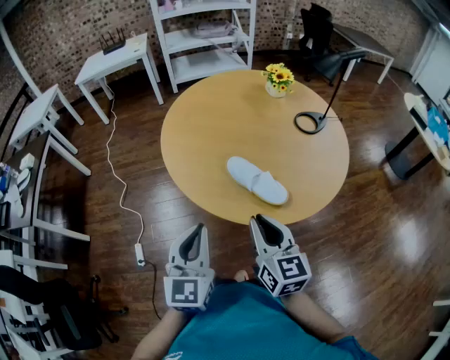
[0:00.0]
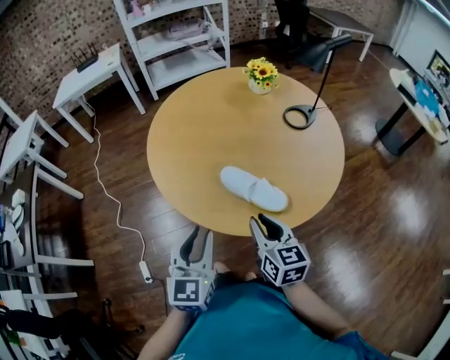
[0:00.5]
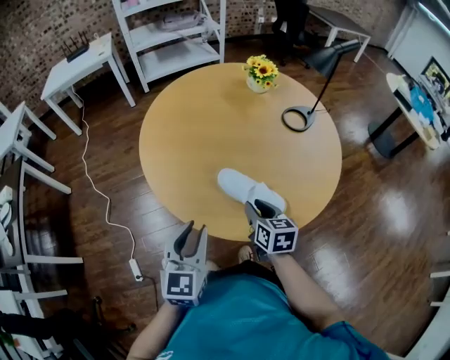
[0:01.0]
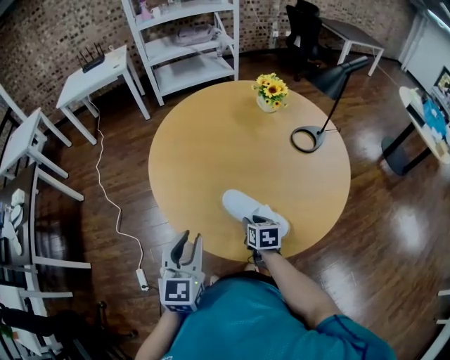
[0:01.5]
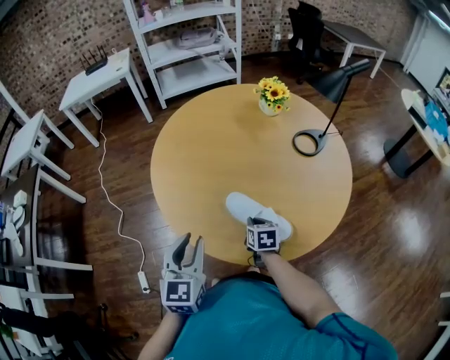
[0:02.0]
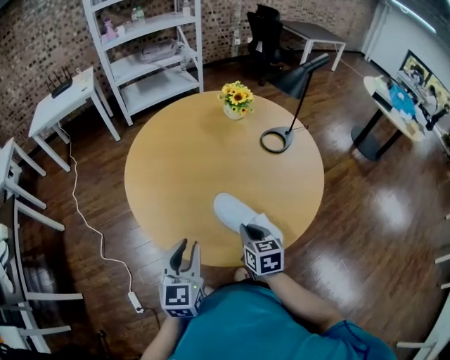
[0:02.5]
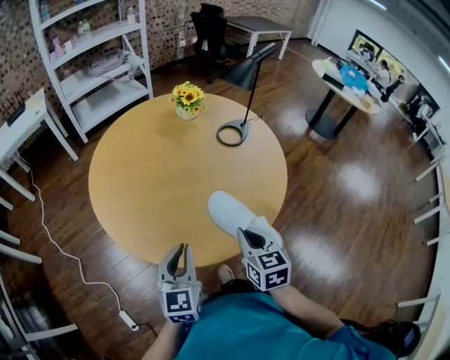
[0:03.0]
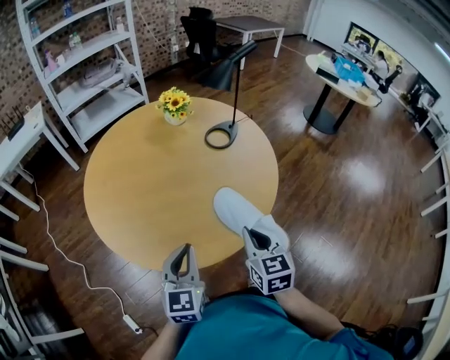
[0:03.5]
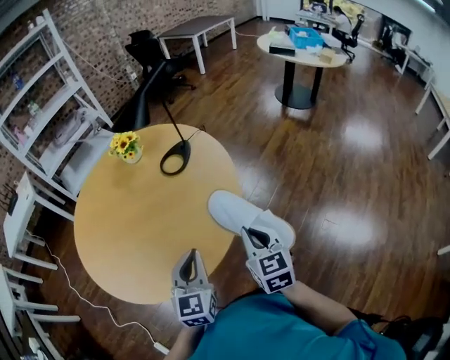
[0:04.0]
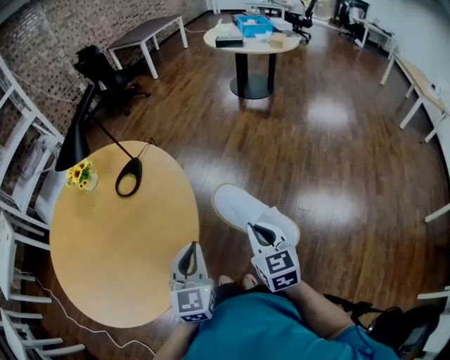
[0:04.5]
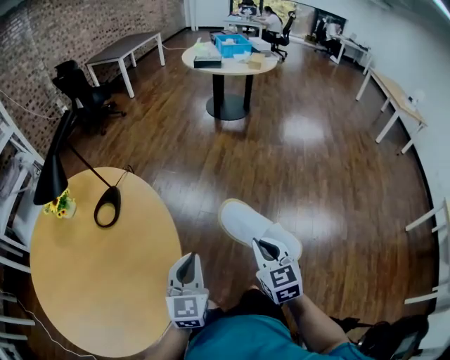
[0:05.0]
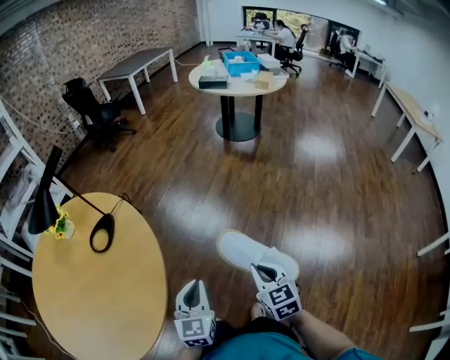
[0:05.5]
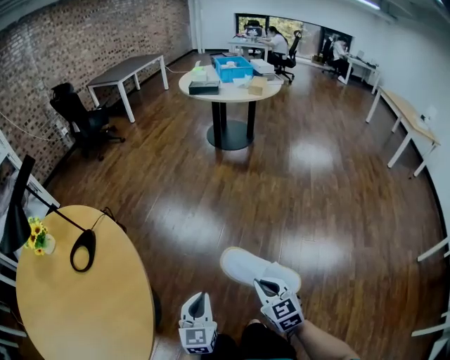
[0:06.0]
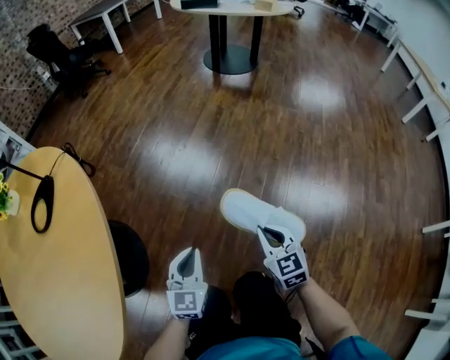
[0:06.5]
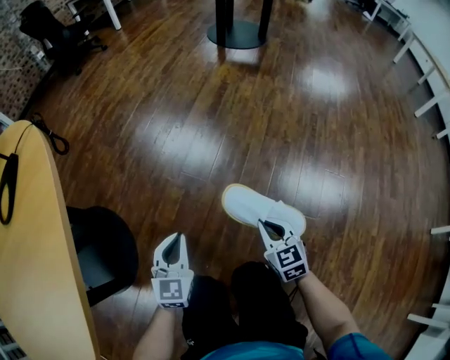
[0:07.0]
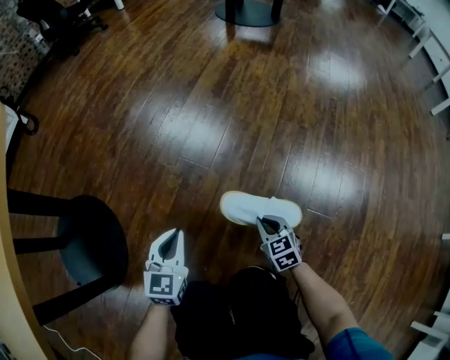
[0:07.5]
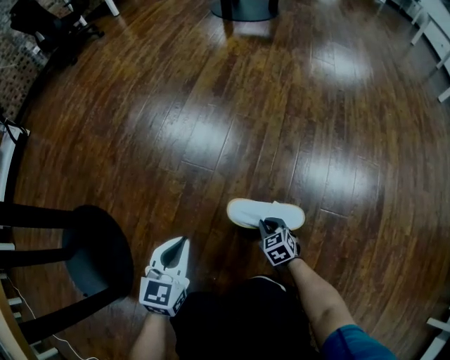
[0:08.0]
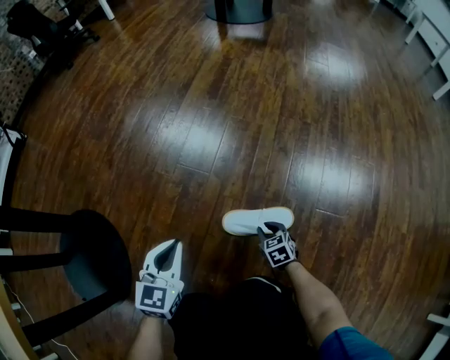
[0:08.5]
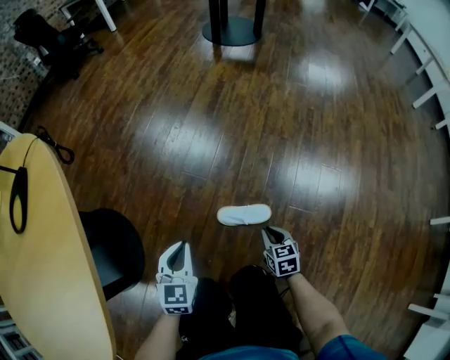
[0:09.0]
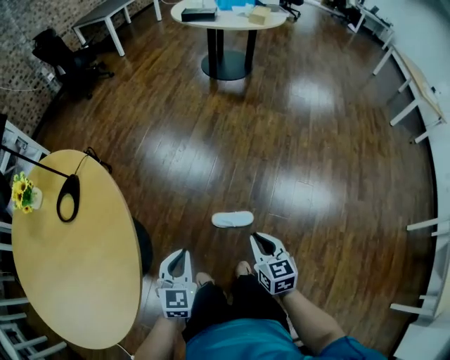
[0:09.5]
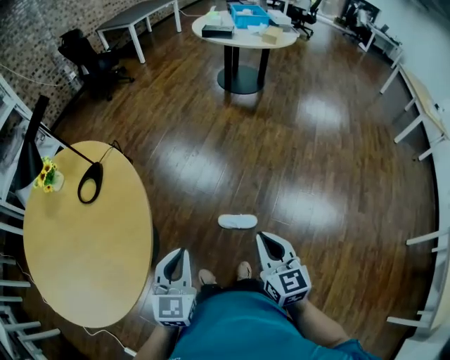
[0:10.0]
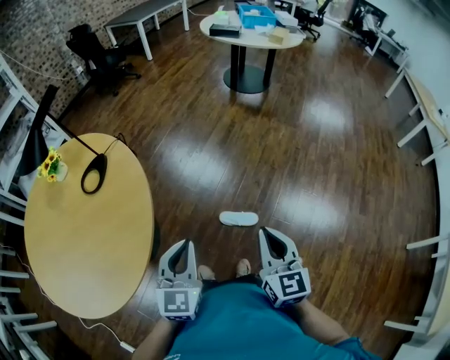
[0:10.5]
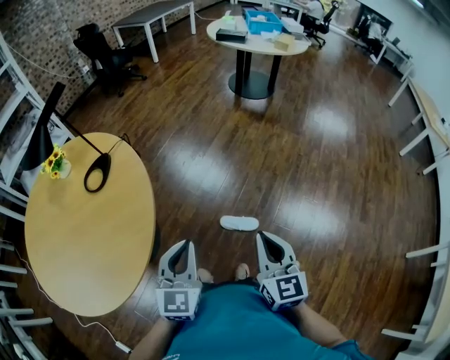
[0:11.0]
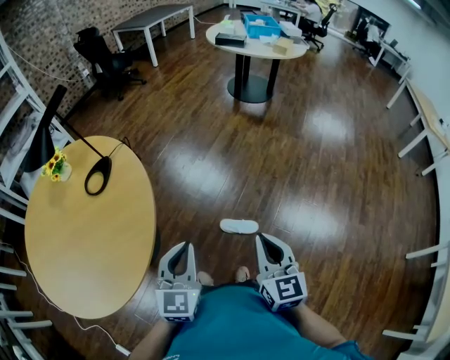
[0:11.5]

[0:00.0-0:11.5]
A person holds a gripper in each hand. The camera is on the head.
0:00.0 to 0:02.0: The left gripper shifts about 20 cm forward, and opens its fingers; the right gripper goes roughly 35 cm downward and forward, angles its fingers downward, by about 30 degrees, and opens and closes again.
0:02.0 to 0:04.0: The left gripper shifts by approximately 35 cm, rotates some 30 degrees, and closes. The right gripper moves approximately 40 cm, and changes its angle by some 40 degrees.
0:04.0 to 0:06.0: Both grippers are carried some 50 cm. The left gripper turns by about 20 degrees.
0:06.0 to 0:07.5: Both grippers move downward, roughly 70 cm.
0:07.5 to 0:09.5: Both grippers travel together upward, roughly 60 cm. The right gripper changes its angle by some 20 degrees.
0:09.5 to 0:11.5: Both grippers move upward and backward, approximately 25 cm. The right gripper changes its angle by roughly 20 degrees.

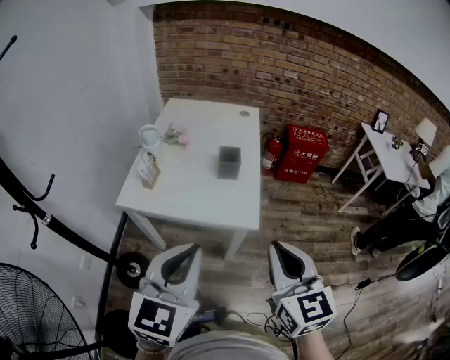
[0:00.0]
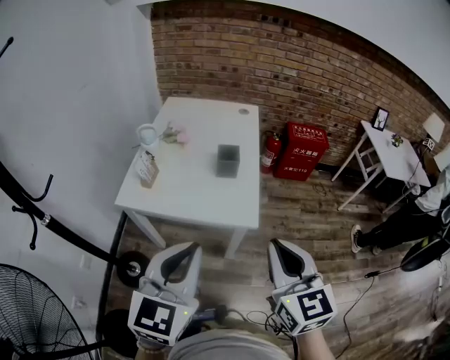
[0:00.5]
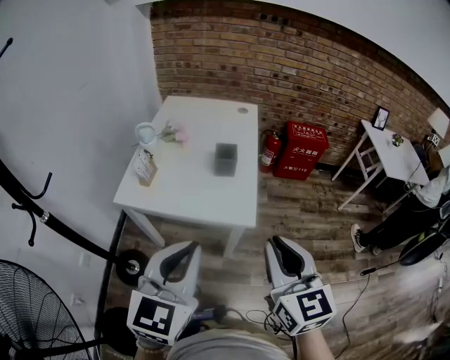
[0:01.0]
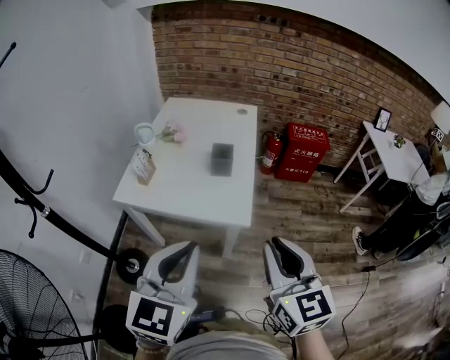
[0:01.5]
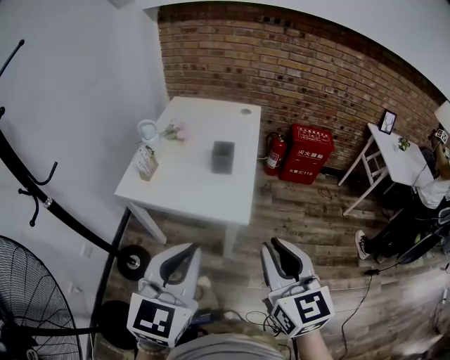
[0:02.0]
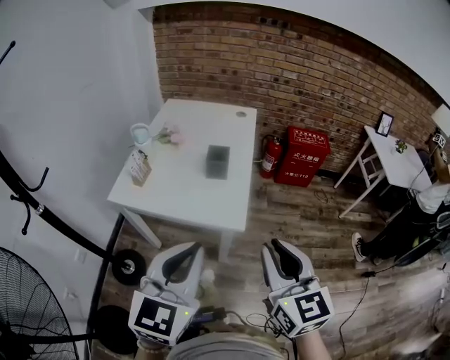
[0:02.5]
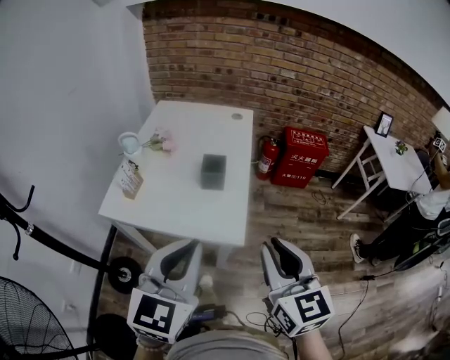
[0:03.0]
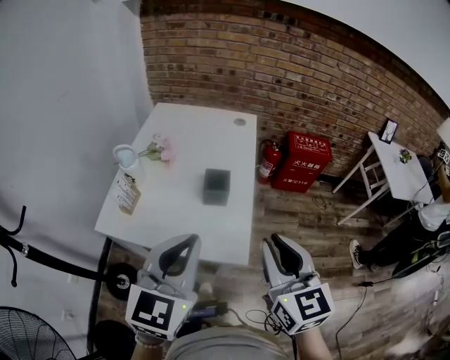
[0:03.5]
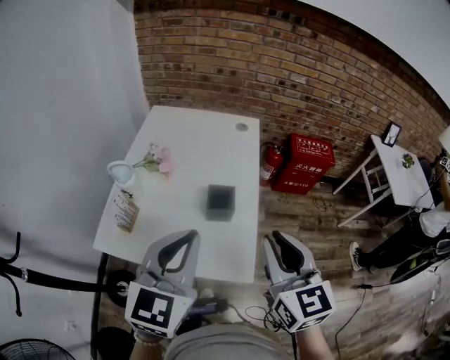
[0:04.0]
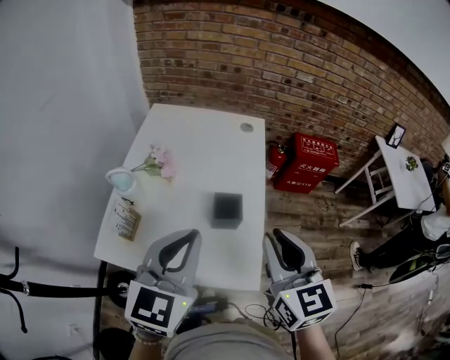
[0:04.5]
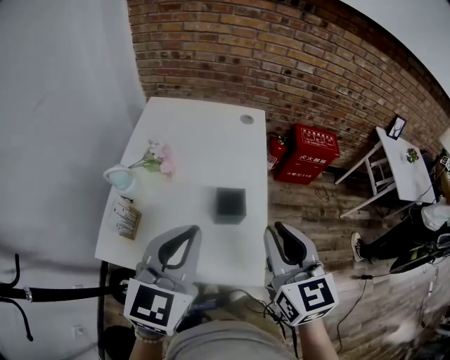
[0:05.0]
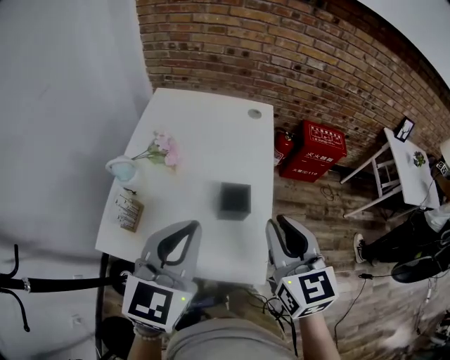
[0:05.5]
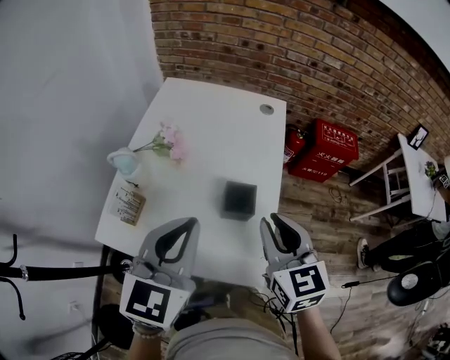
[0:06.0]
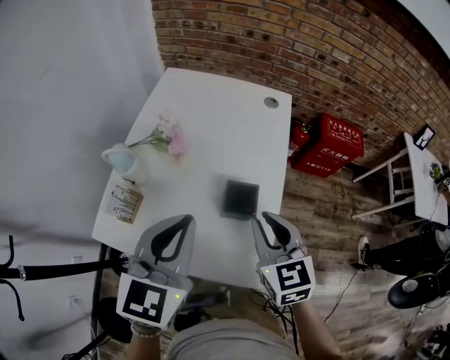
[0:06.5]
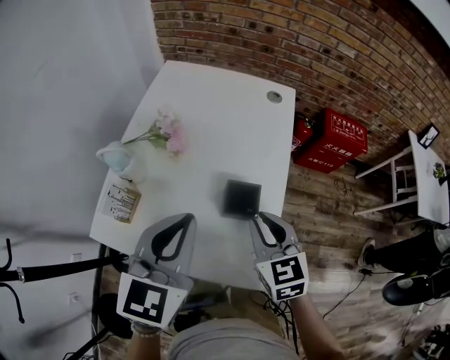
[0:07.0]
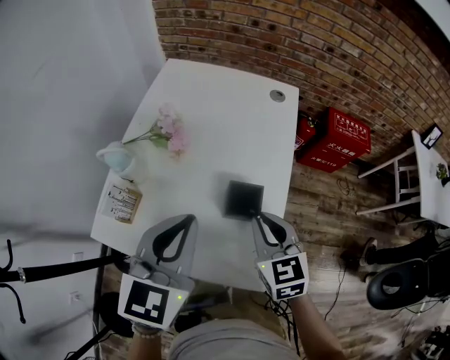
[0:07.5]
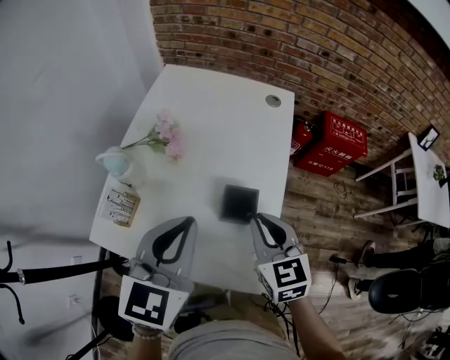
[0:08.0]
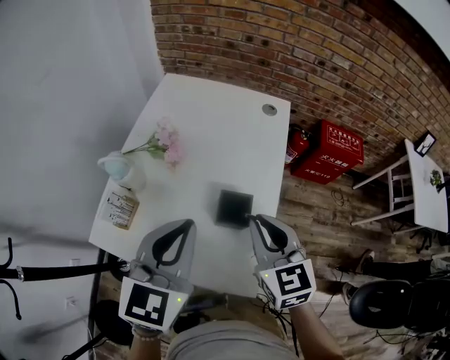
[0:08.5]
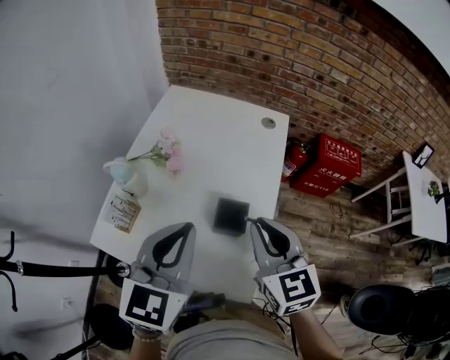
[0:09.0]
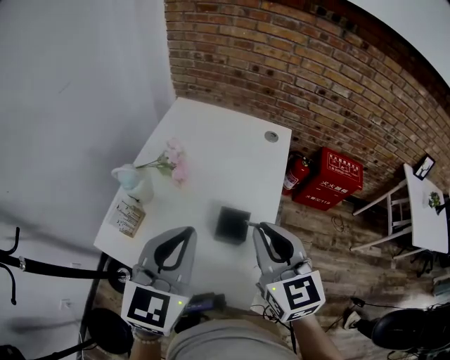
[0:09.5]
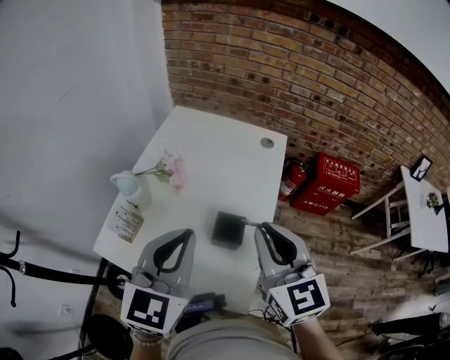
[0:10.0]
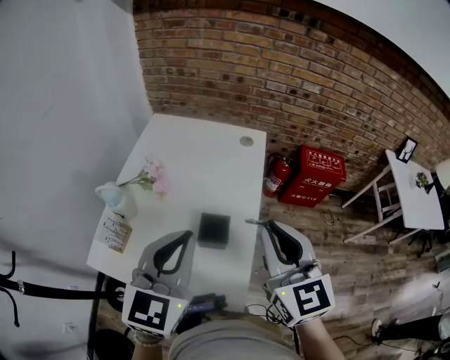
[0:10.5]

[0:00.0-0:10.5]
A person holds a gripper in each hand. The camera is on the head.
0:00.0 to 0:02.0: The two grippers go roughly 5 cm to the right.
0:02.0 to 0:04.0: Both grippers move forward, some 25 cm.
0:04.0 to 0:06.5: The left gripper travels forward and downward by approximately 10 cm. Meanwhile the right gripper is displaced forward, downward and to the left by some 20 cm.
0:06.5 to 0:08.5: The grippers make only small movements.
0:08.5 to 0:10.5: The left gripper travels upward by roughly 5 cm. The right gripper goes about 15 cm upward and to the right.

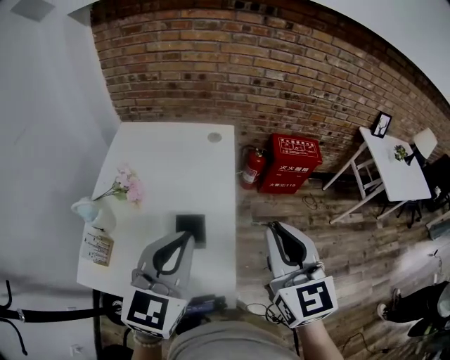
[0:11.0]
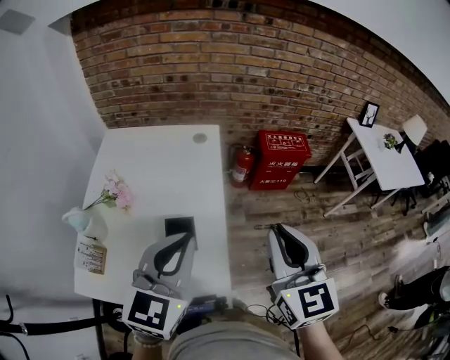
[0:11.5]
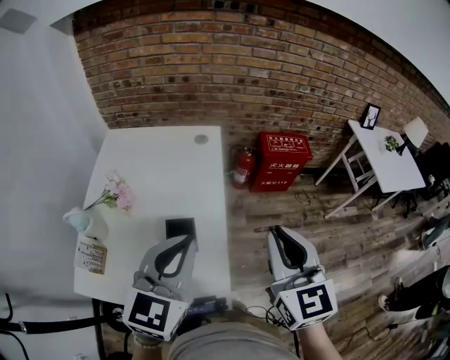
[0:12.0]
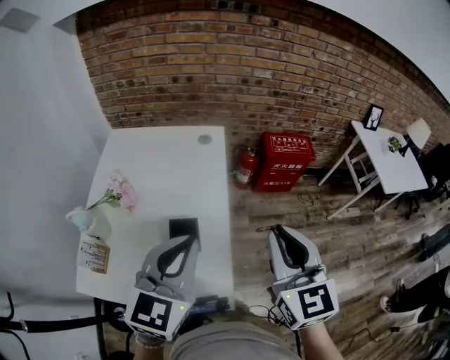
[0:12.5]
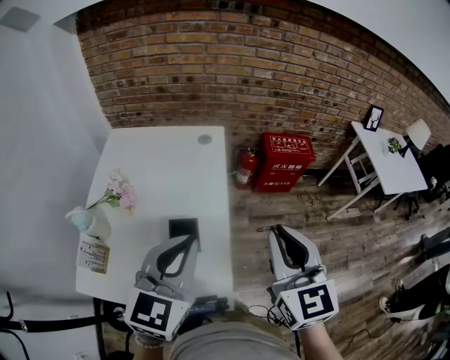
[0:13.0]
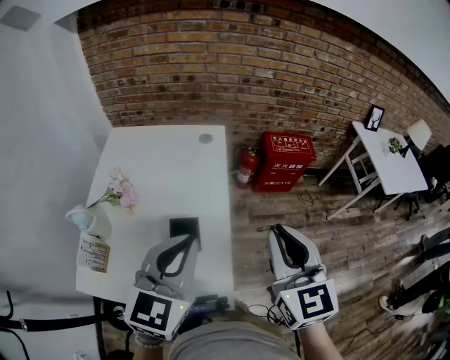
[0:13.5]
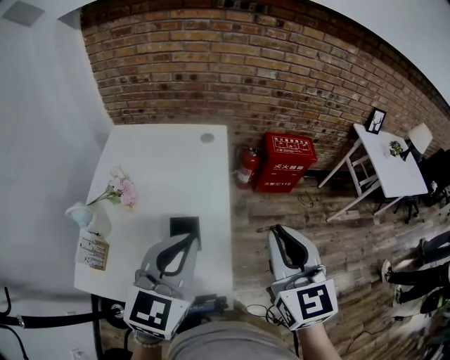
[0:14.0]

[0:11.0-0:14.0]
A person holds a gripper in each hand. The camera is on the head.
0:11.0 to 0:12.5: The grippers move only a little.
0:12.5 to 0:14.0: Both grippers stay put.

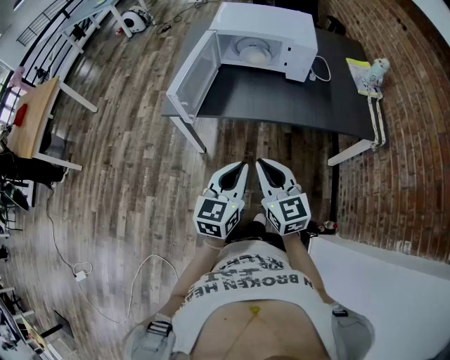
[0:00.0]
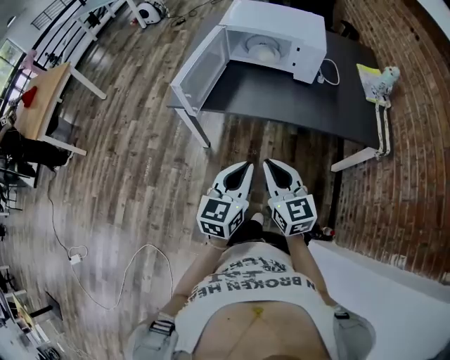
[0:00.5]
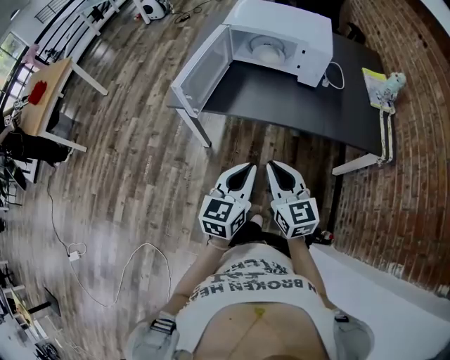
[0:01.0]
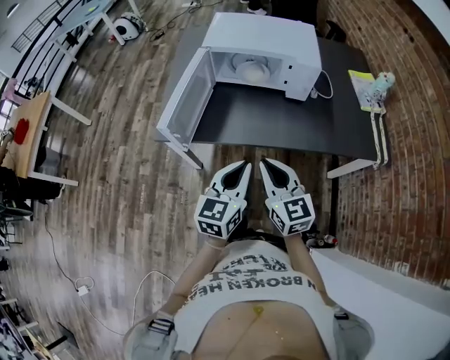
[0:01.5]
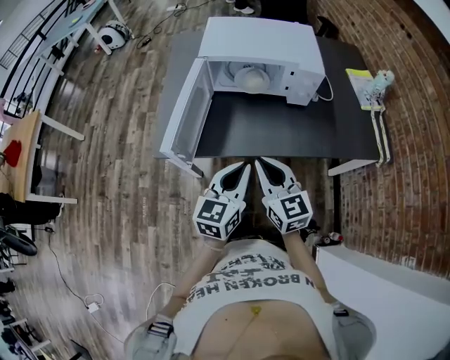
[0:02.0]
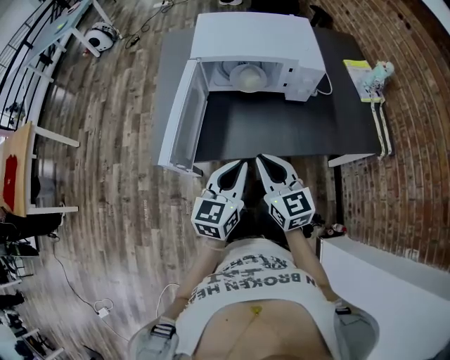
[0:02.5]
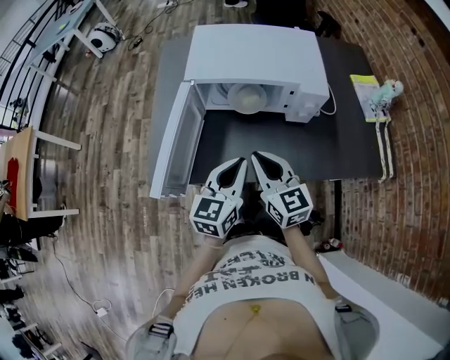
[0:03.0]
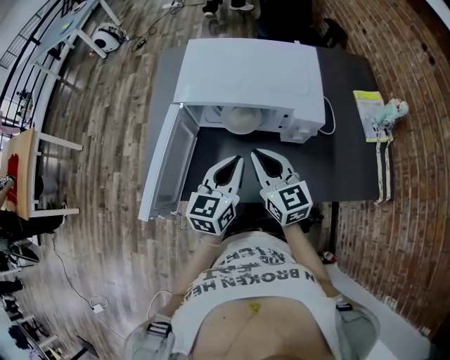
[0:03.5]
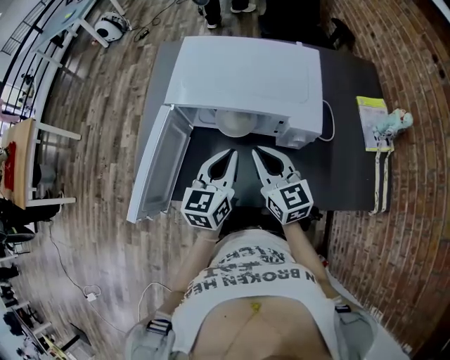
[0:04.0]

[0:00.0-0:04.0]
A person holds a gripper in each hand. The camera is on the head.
0:00.0 to 0:02.0: Both grippers move forward, about 20 cm.
0:02.0 to 0:04.0: Both grippers travel together forward, approximately 25 cm.
